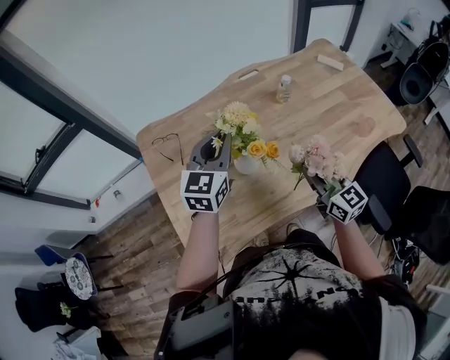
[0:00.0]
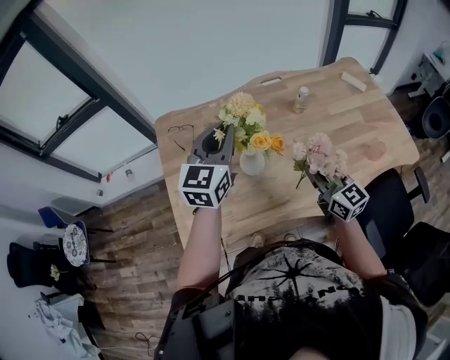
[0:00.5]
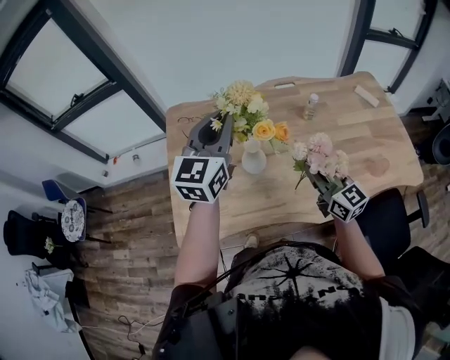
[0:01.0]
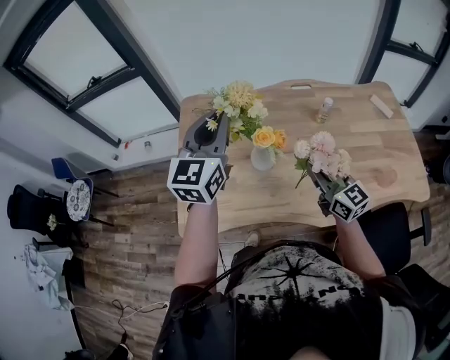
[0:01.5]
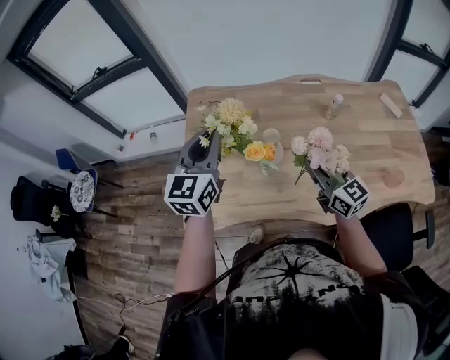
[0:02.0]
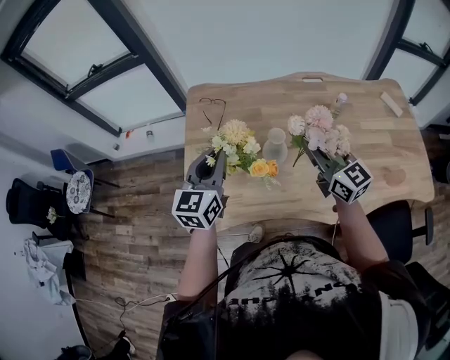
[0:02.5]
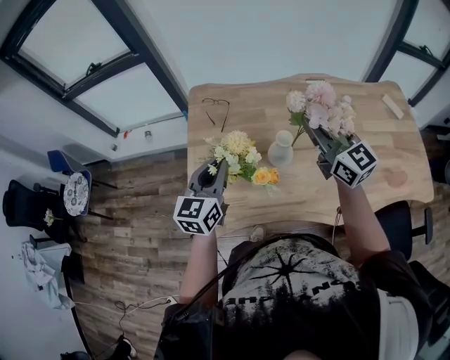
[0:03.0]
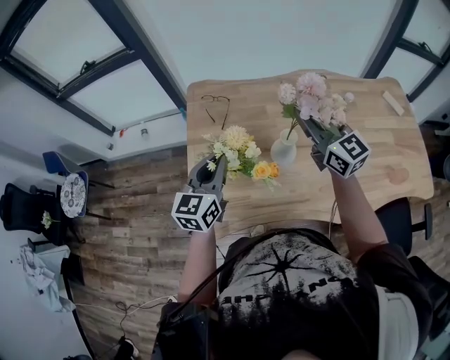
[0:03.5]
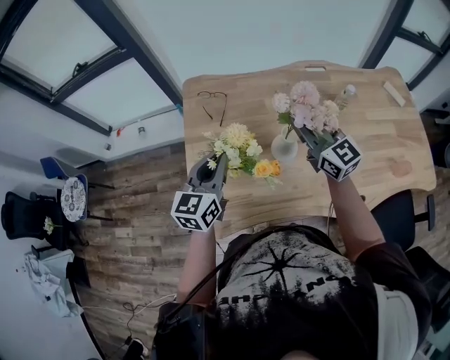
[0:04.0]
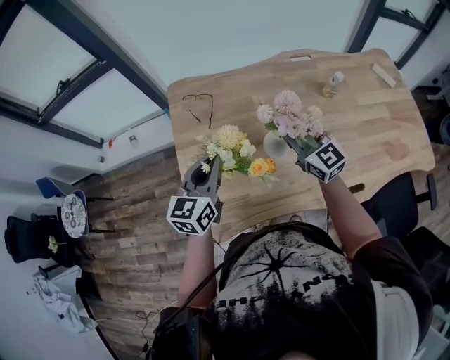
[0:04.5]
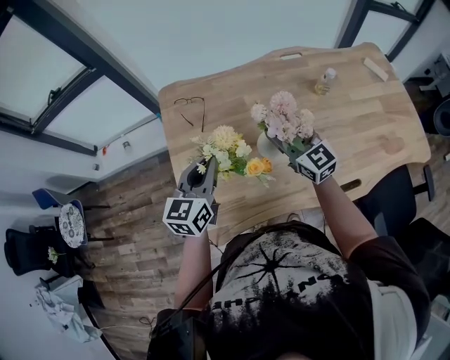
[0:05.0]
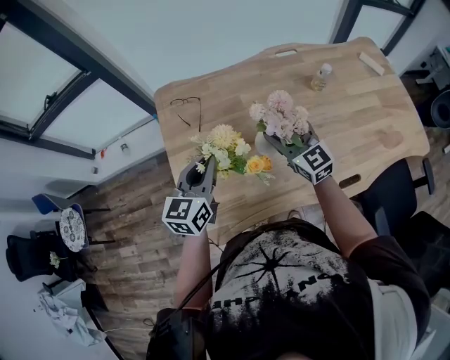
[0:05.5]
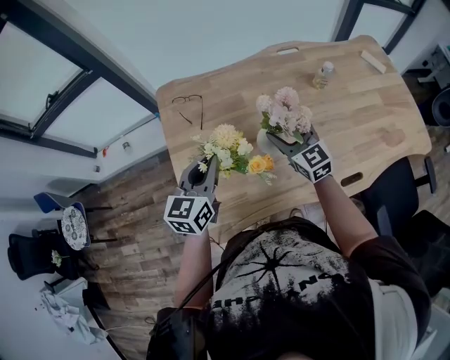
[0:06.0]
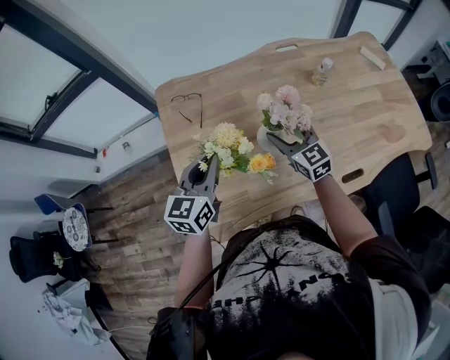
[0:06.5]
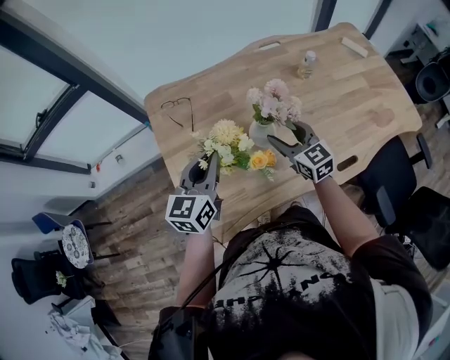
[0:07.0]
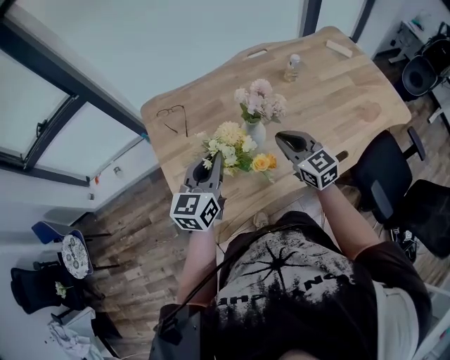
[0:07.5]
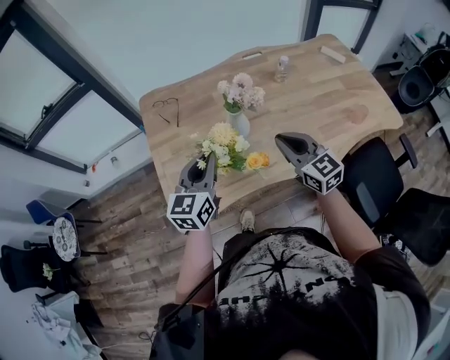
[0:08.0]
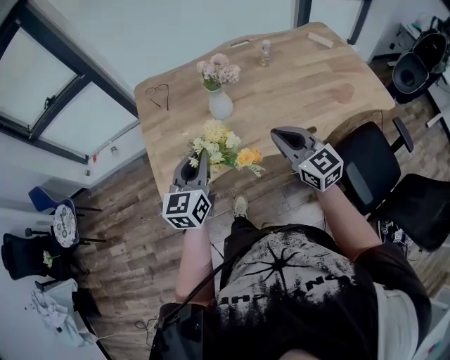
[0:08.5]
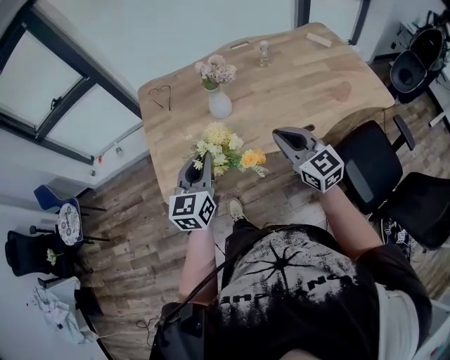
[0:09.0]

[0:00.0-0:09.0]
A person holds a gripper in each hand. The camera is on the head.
0:00.0 to 0:02.0: The right gripper changes place by approximately 5 cm, and swivels approximately 30 degrees. The left gripper ends up roughly 15 cm from where it was, and turns by approximately 30 degrees.
0:02.0 to 0:04.5: The right gripper goes about 15 cm forward and to the left. Meanwhile the left gripper heads downward, covering approximately 15 cm.
0:04.5 to 0:07.0: The right gripper travels downward by about 10 cm, turns by some 20 degrees, and opens up.
0:07.0 to 0:09.0: The left gripper is displaced backward and to the right by some 25 cm; the right gripper moves backward, to the right and upward, roughly 30 cm, and closes its fingers.

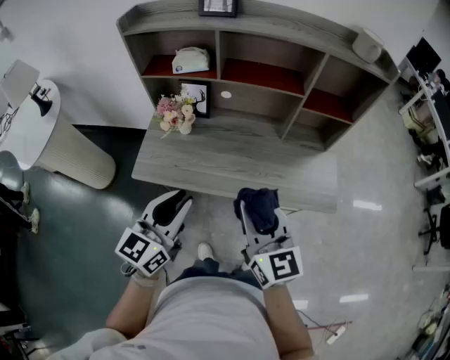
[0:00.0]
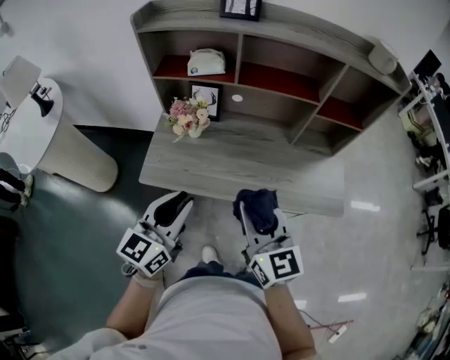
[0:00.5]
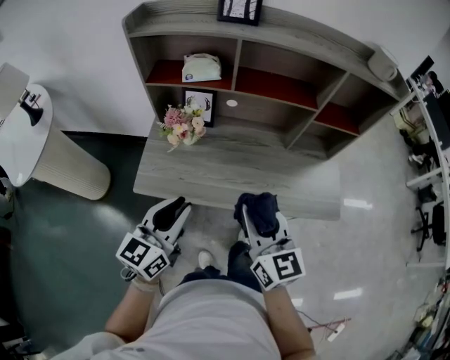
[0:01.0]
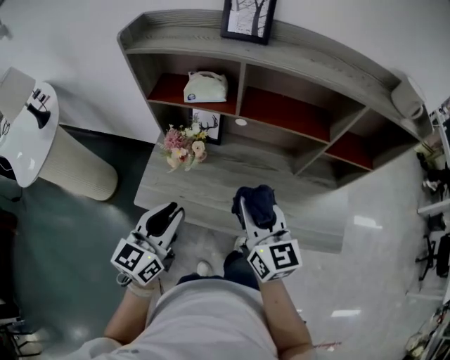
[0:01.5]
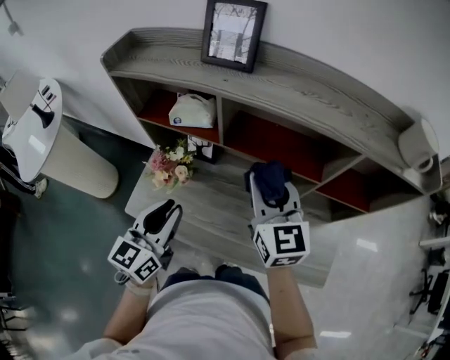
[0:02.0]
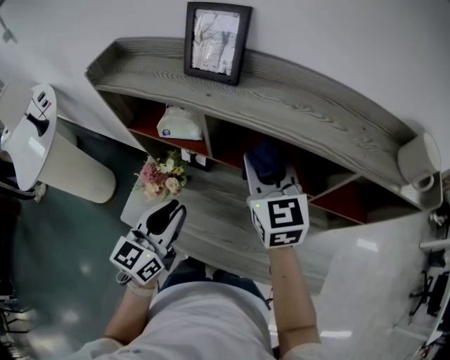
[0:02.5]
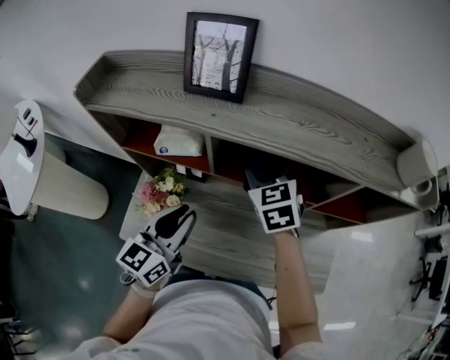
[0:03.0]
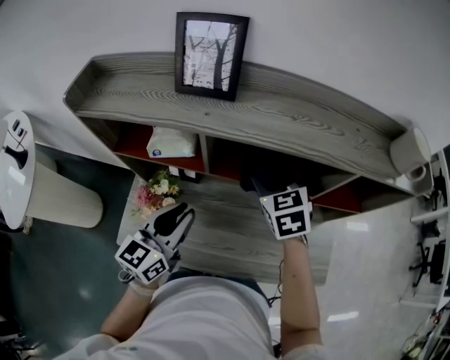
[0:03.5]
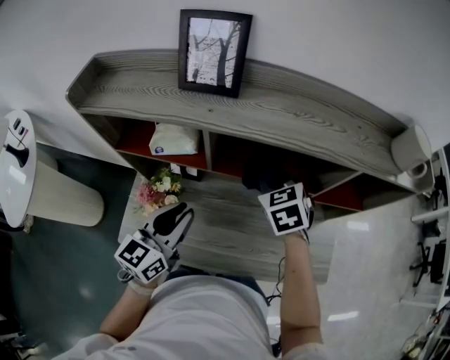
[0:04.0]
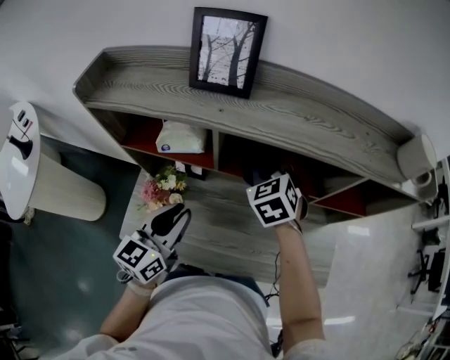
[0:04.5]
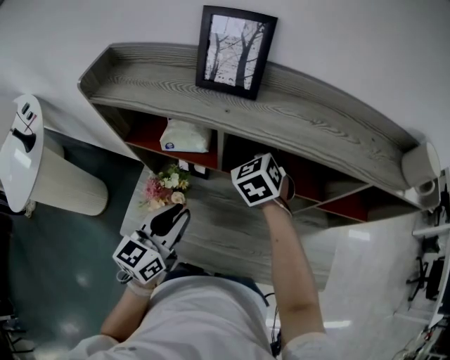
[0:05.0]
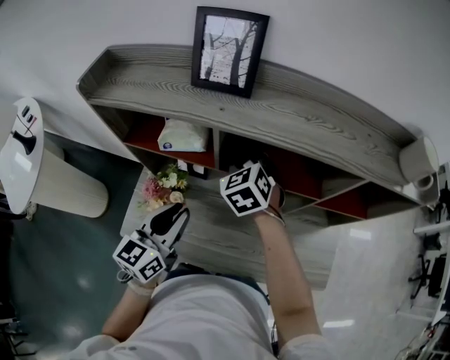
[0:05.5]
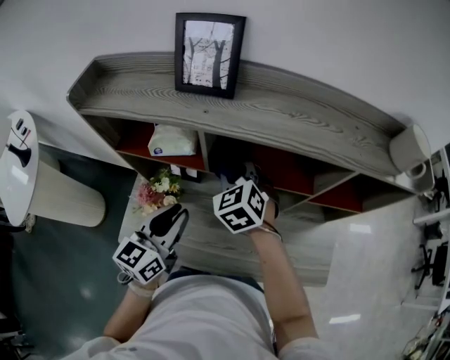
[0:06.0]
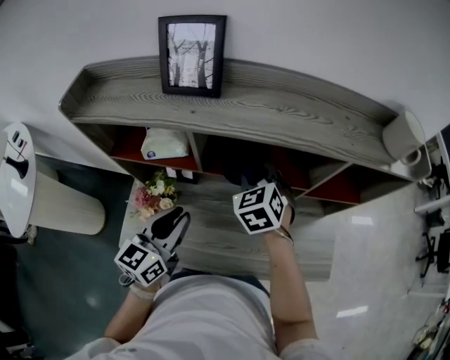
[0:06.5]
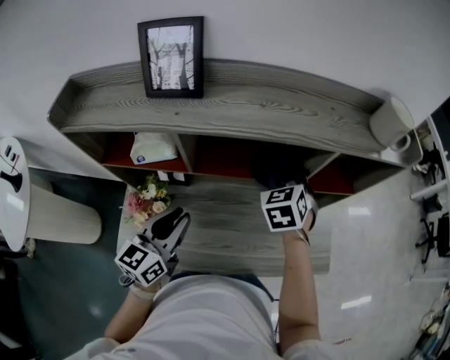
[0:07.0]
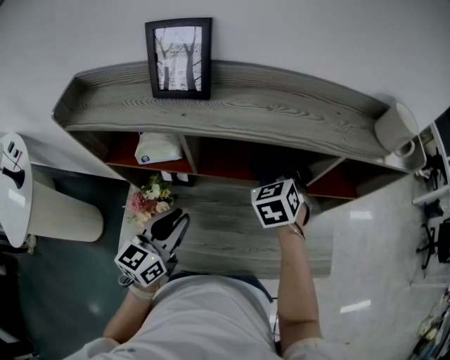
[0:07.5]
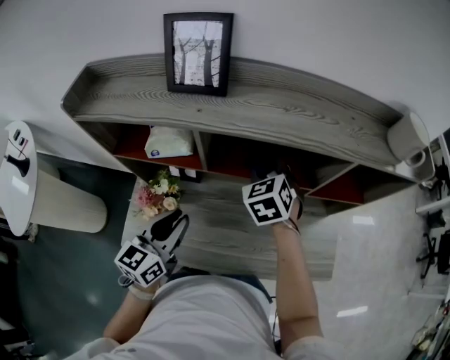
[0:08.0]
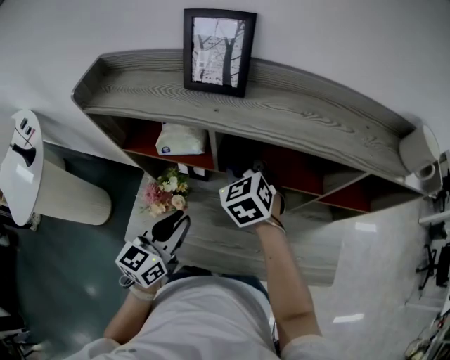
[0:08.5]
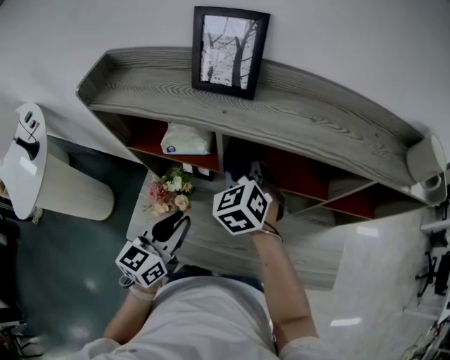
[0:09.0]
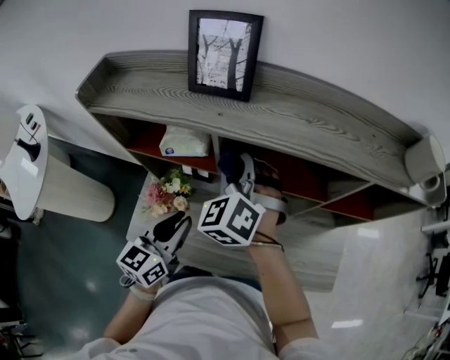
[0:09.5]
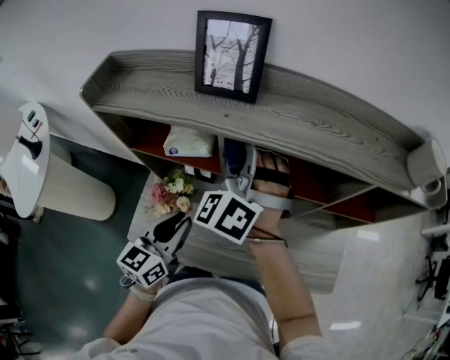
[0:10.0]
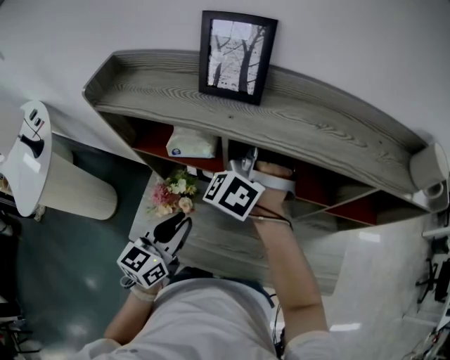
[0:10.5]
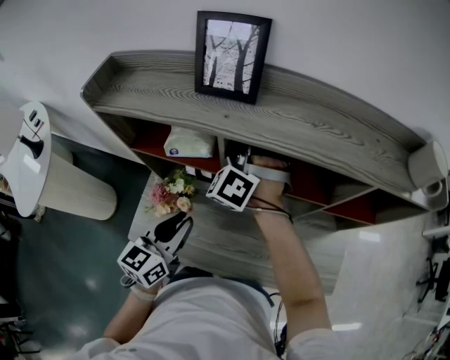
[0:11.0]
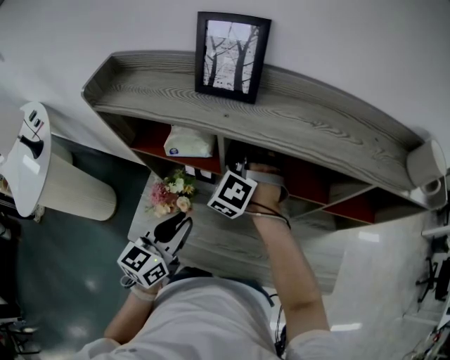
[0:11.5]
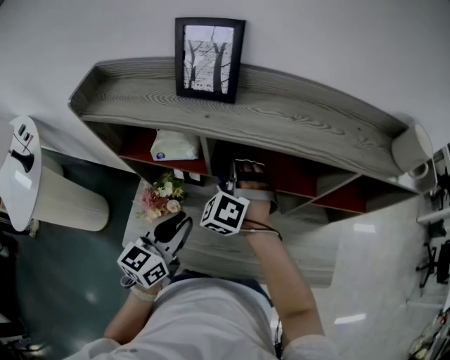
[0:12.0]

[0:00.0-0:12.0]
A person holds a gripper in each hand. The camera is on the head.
0:00.0 to 0:02.0: The left gripper goes roughly 20 cm forward. The right gripper moves forward, some 35 cm.
0:02.0 to 0:04.0: The right gripper goes approximately 15 cm forward and downward, points its fingers approximately 40 degrees further downward, and opens and closes again, while the left gripper is displaced forward by about 10 cm.
0:04.0 to 0:06.0: The right gripper is displaced to the left by approximately 10 cm.
0:06.0 to 0:08.0: The right gripper moves to the right, about 10 cm.
0:08.0 to 0:10.0: The right gripper heads upward and to the left, covering roughly 15 cm, and swivels some 40 degrees.
0:10.0 to 0:12.0: The right gripper is displaced downward by some 10 cm.

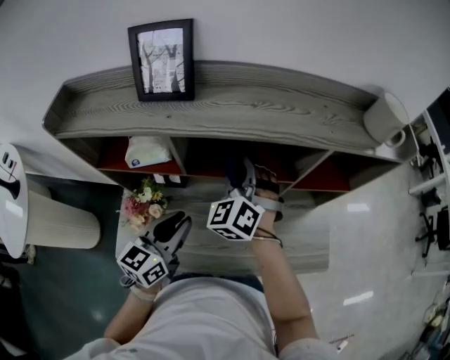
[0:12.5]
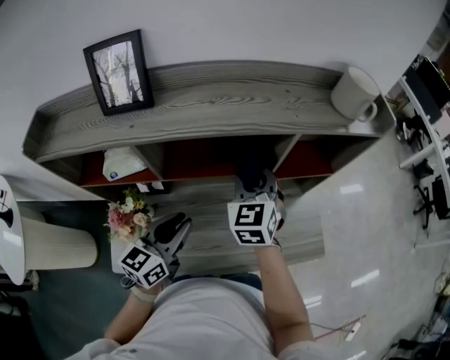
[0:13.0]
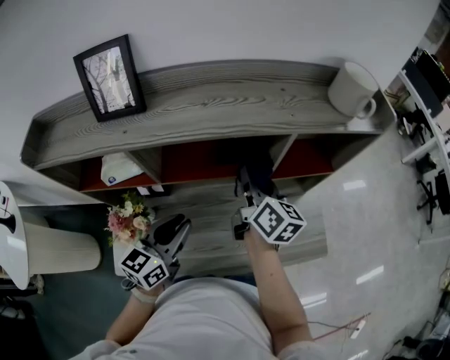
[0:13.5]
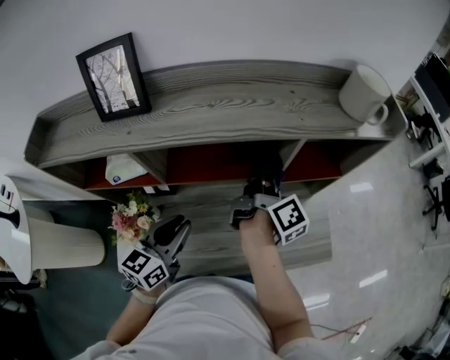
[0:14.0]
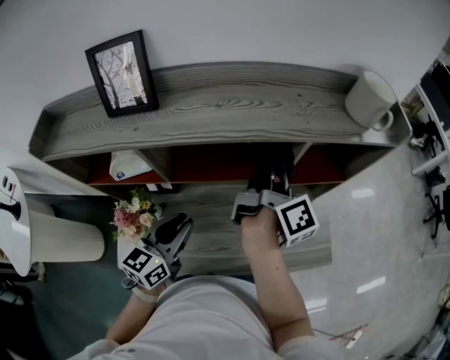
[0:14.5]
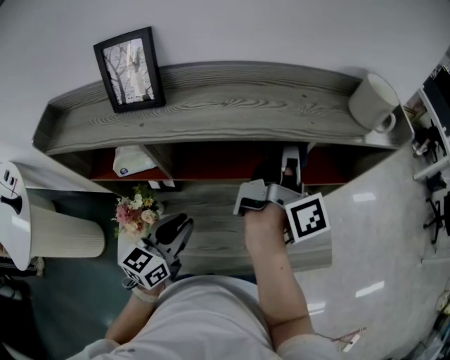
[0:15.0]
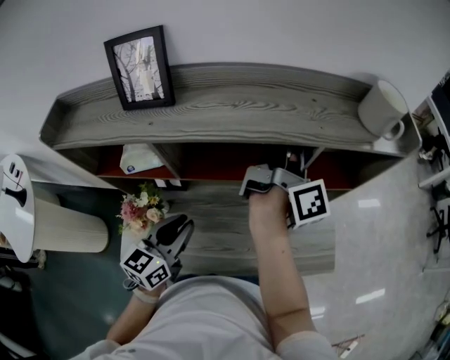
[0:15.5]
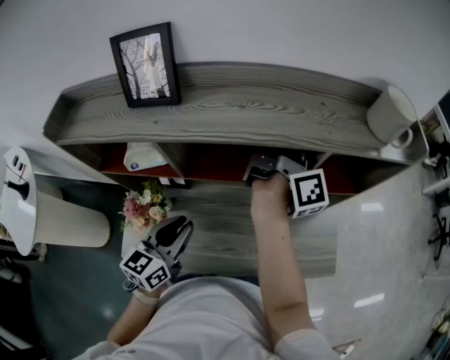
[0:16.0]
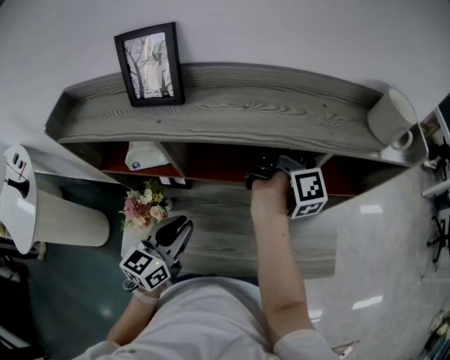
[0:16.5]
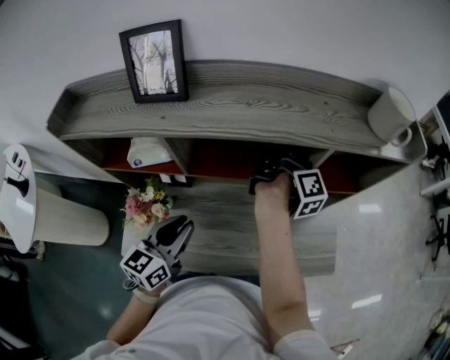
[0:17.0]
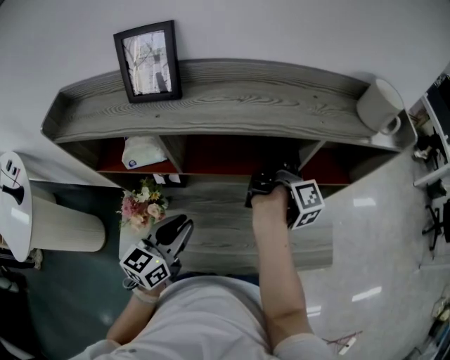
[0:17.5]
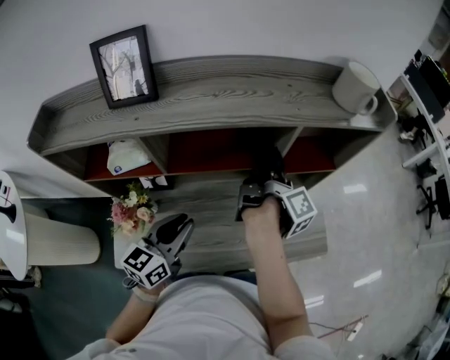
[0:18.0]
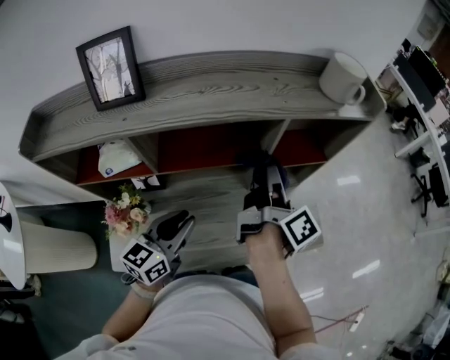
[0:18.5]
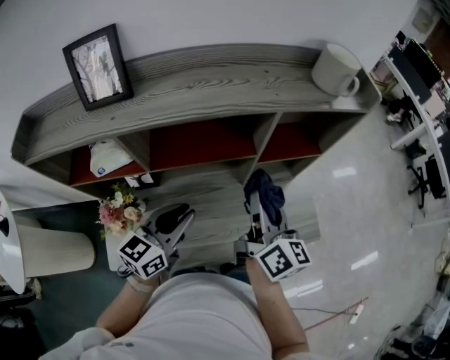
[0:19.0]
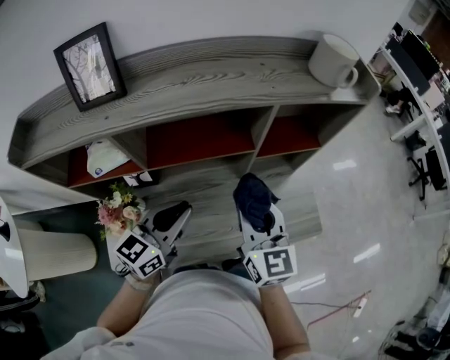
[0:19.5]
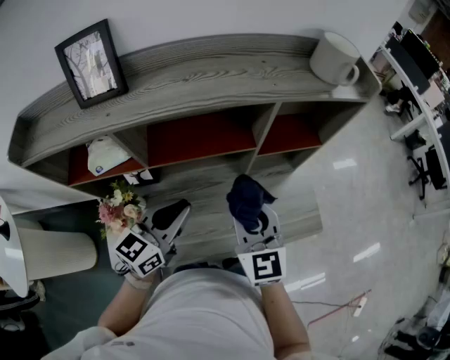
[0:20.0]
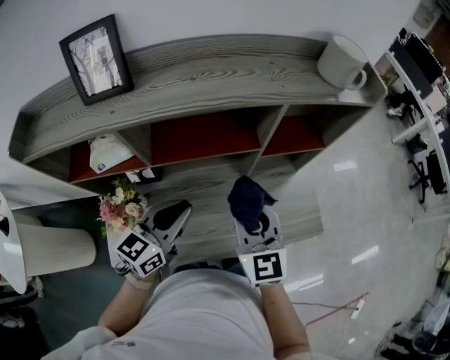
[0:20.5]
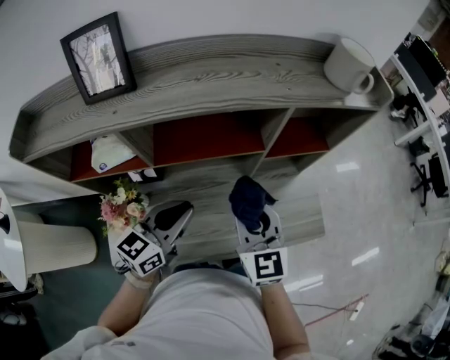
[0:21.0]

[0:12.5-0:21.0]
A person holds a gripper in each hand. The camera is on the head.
0:12.5 to 0:14.5: The right gripper heads to the right, covering roughly 15 cm, and twists approximately 130 degrees clockwise, seen from behind.
0:14.5 to 0:16.5: The right gripper moves forward, roughly 5 cm.
0:16.5 to 0:19.0: The left gripper moves to the right, some 5 cm, and changes its angle by approximately 20 degrees. Meanwhile the right gripper goes about 20 cm backward, and turns by some 40 degrees.
0:19.0 to 0:21.0: The right gripper goes approximately 5 cm to the left, and rolls counterclockwise, seen from behind, by about 50 degrees.
